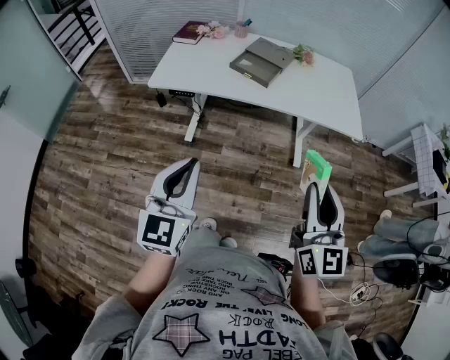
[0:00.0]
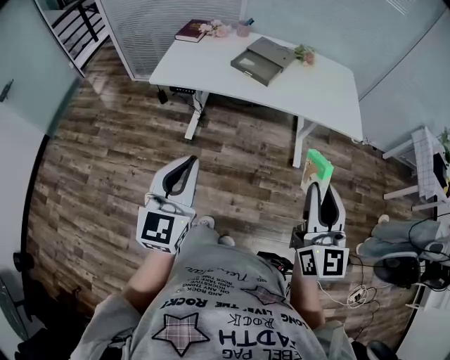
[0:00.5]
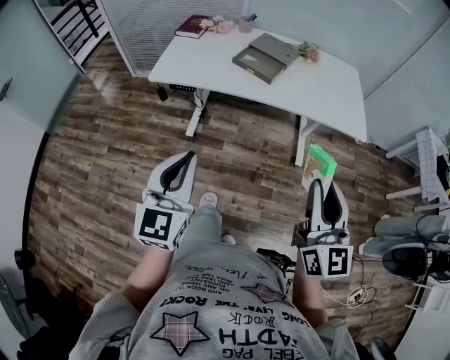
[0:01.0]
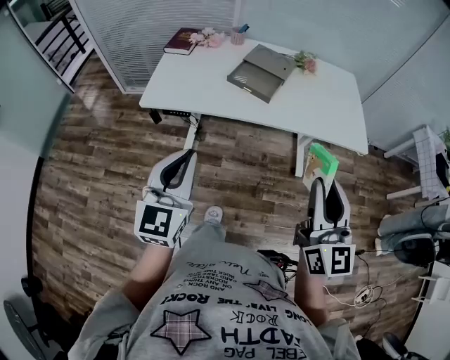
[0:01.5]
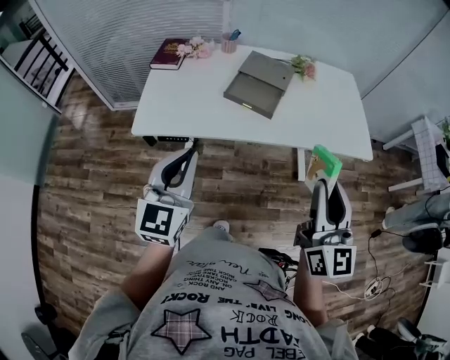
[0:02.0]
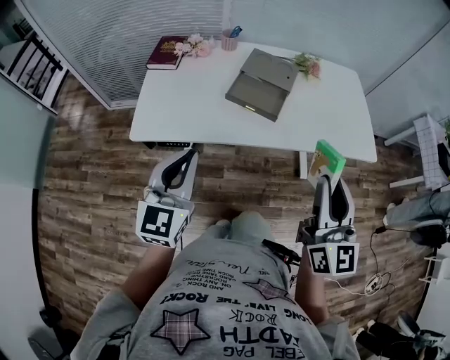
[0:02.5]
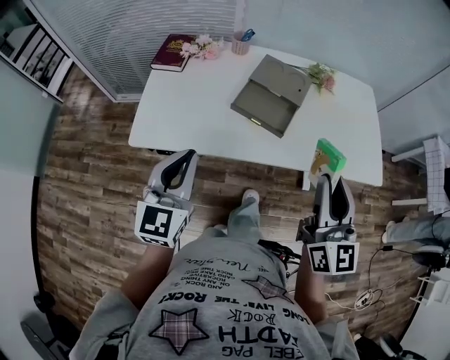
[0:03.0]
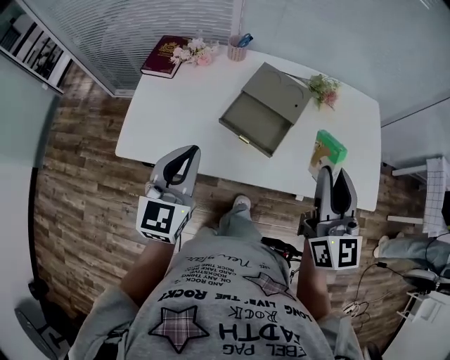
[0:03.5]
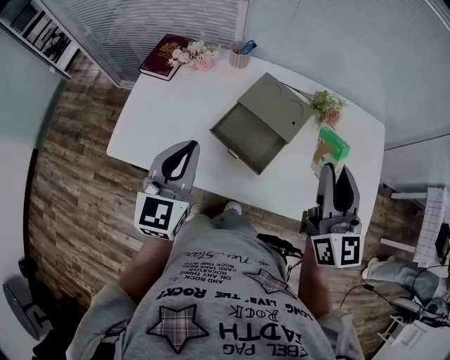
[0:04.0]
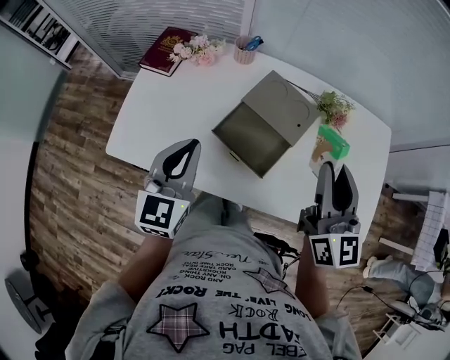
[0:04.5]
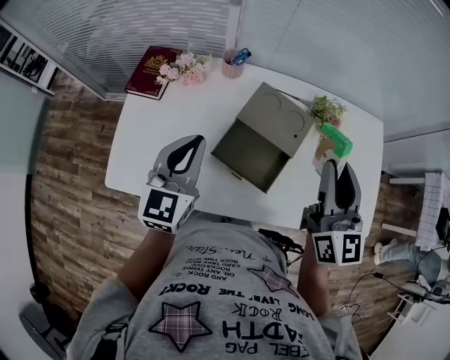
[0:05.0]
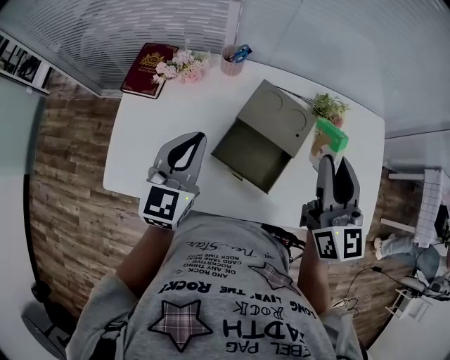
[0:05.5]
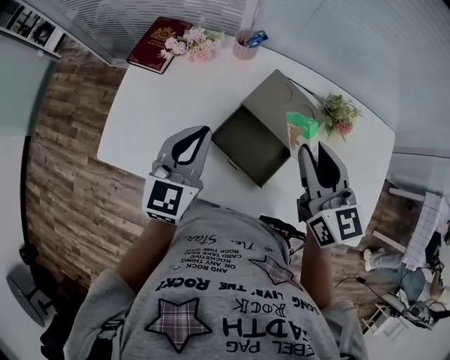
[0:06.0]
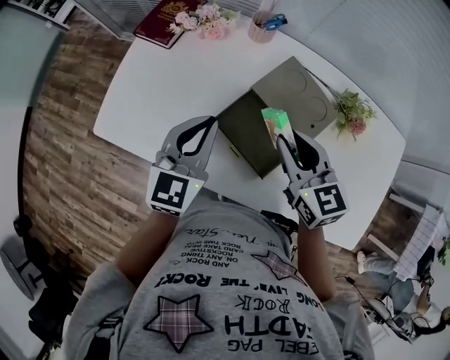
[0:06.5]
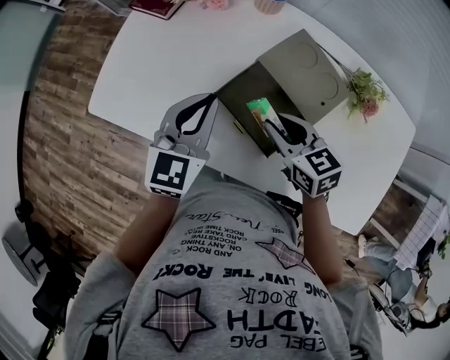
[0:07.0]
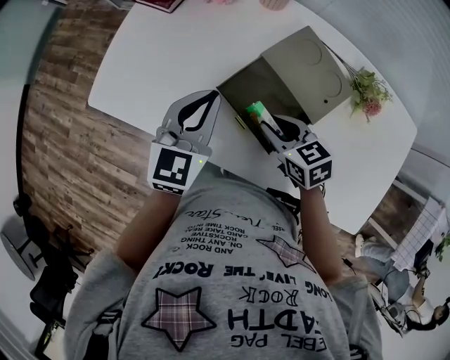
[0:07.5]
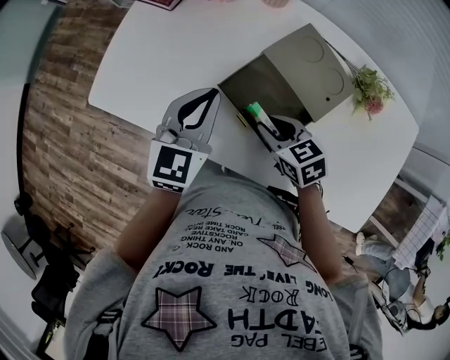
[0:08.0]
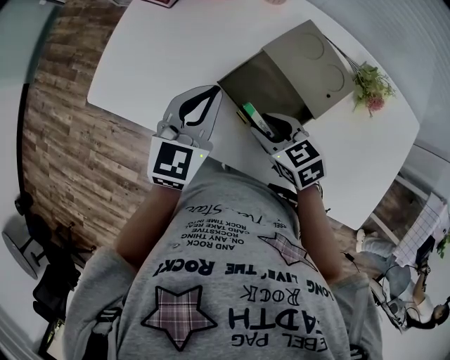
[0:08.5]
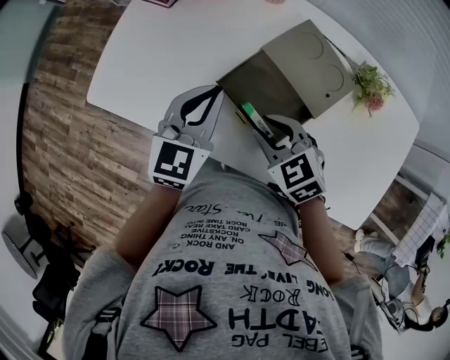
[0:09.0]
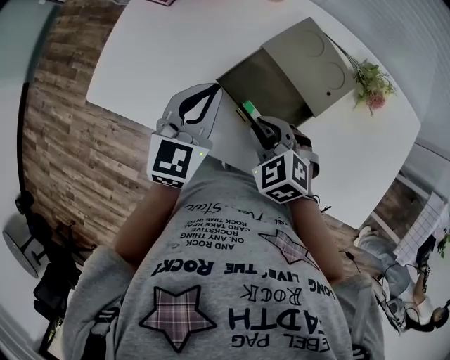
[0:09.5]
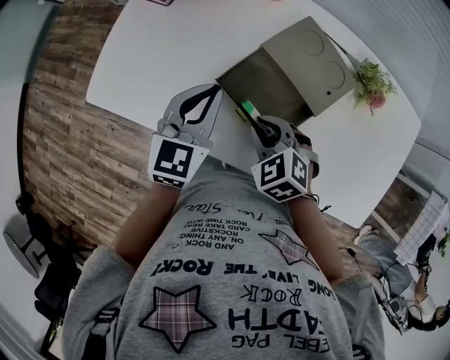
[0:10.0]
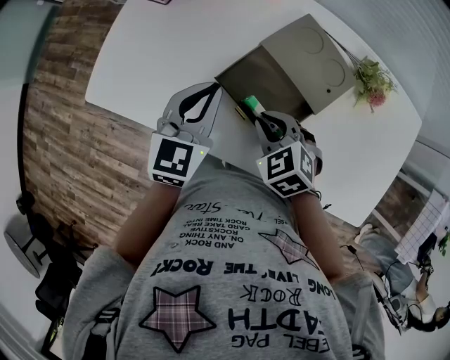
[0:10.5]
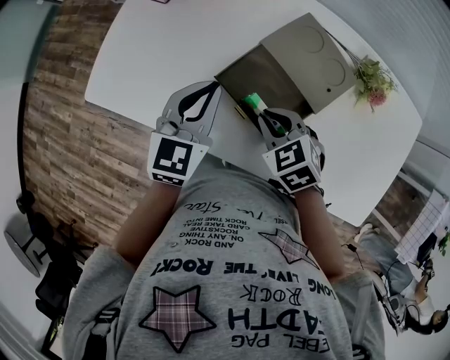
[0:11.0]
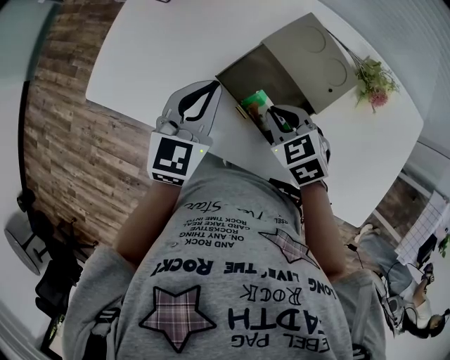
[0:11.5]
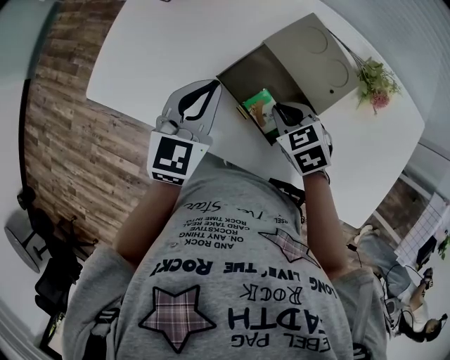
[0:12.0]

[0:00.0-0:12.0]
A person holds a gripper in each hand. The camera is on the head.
0:00.0 to 0:02.0: Both grippers move forward, about 25 cm.
0:02.0 to 0:04.0: The two grippers go about 30 cm forward.
0:04.0 to 0:06.0: The right gripper goes roughly 15 cm forward, to the left and downward, and rotates approximately 20 degrees; the left gripper heads forward and downward, covering roughly 10 cm.
0:06.0 to 0:08.0: The right gripper is displaced downward by roughly 25 cm, and tips its fingers downward by about 30 degrees. Meanwhile the left gripper travels downward by roughly 5 cm.
0:08.0 to 0:10.0: The right gripper rotates about 30 degrees.
0:10.0 to 0:12.0: The right gripper heads to the right, covering some 5 cm.

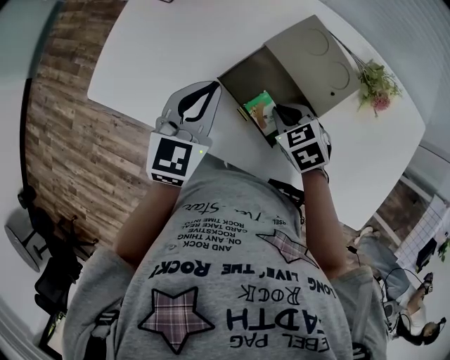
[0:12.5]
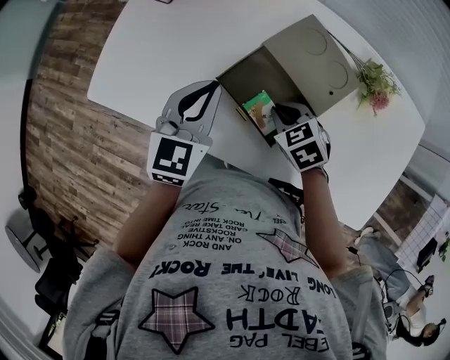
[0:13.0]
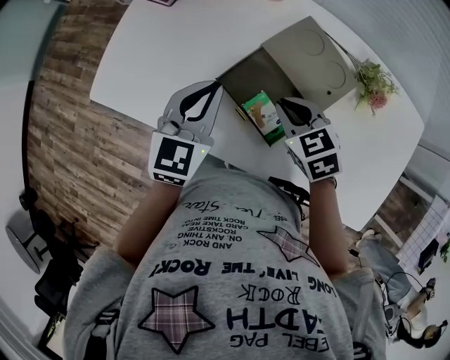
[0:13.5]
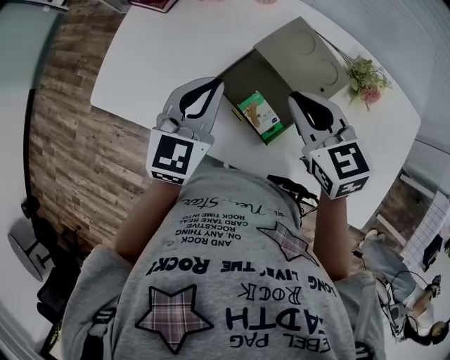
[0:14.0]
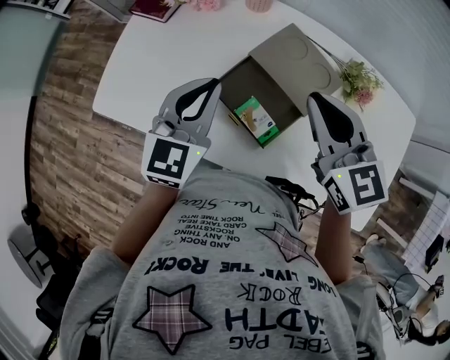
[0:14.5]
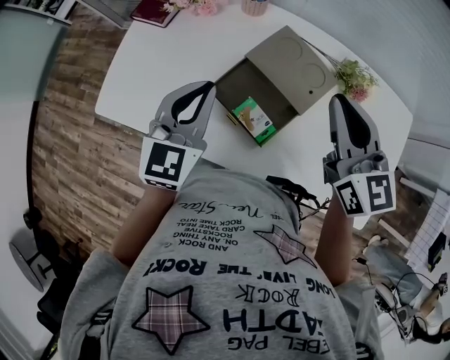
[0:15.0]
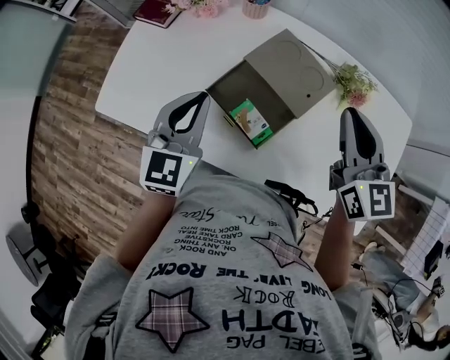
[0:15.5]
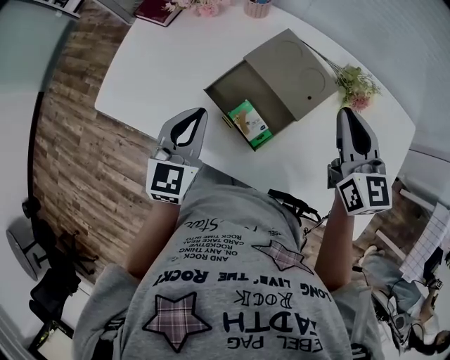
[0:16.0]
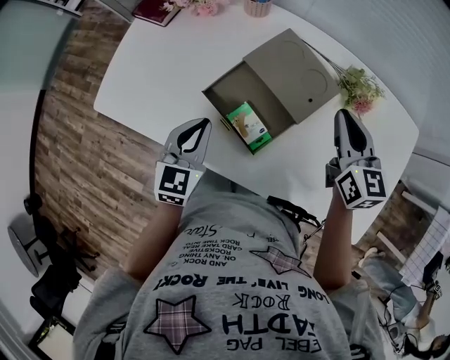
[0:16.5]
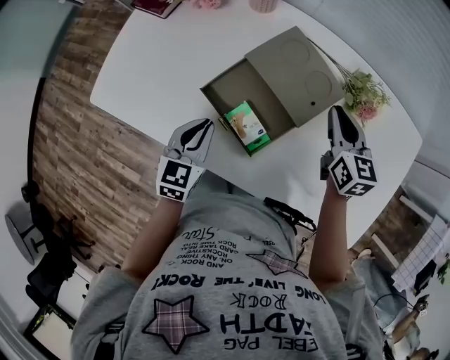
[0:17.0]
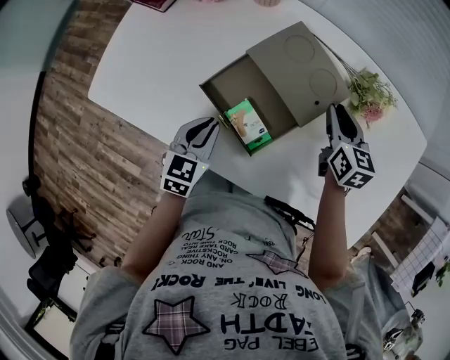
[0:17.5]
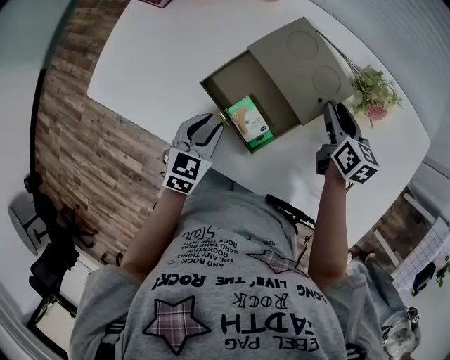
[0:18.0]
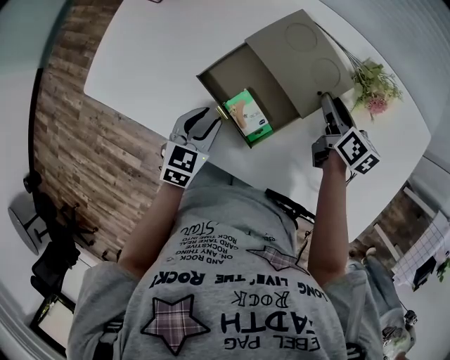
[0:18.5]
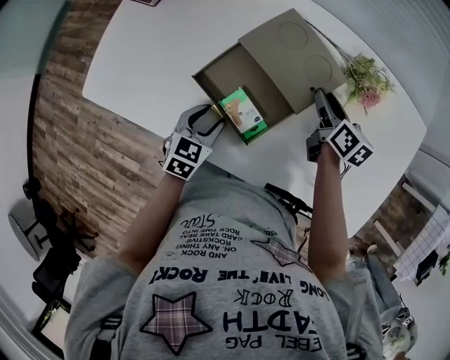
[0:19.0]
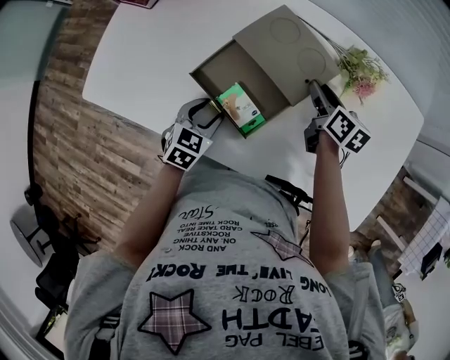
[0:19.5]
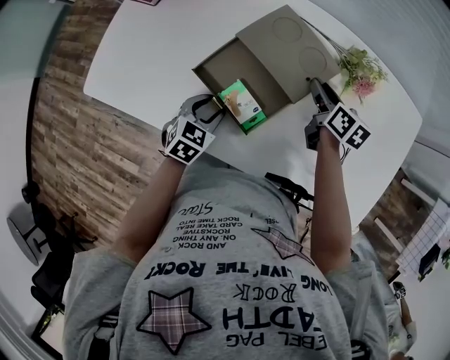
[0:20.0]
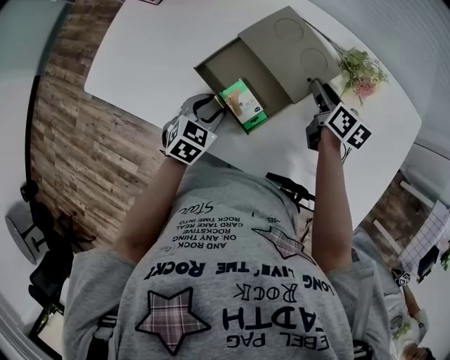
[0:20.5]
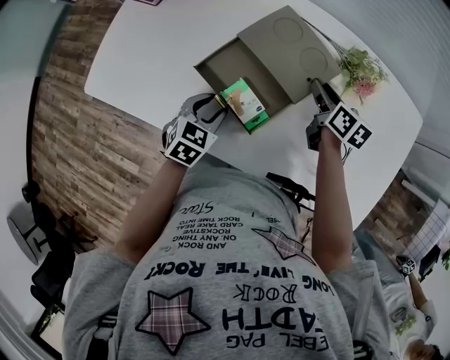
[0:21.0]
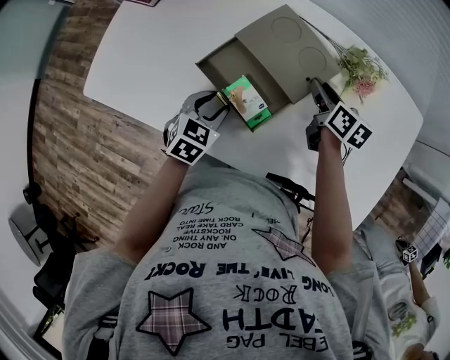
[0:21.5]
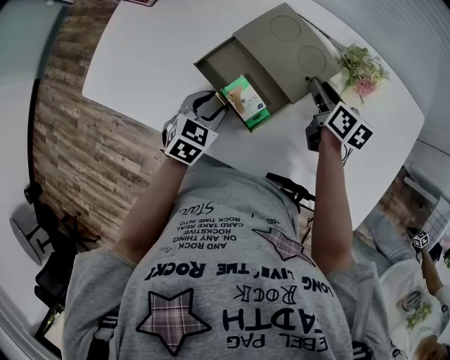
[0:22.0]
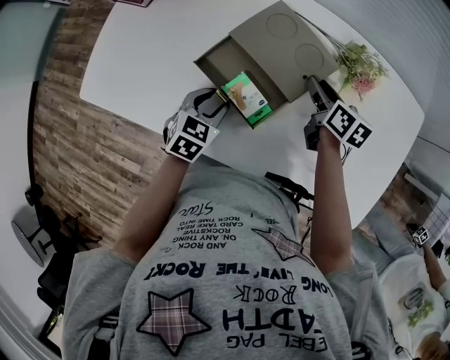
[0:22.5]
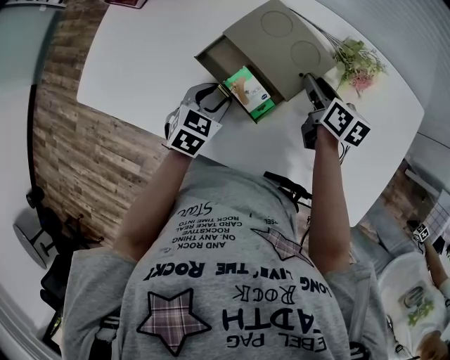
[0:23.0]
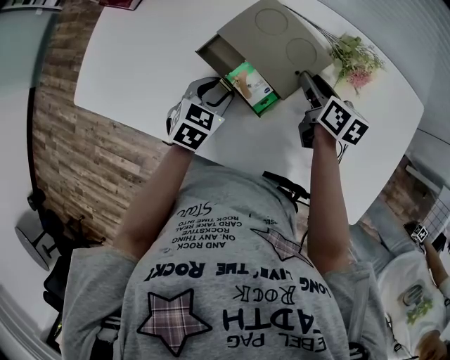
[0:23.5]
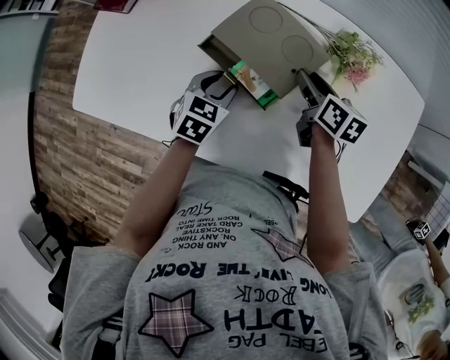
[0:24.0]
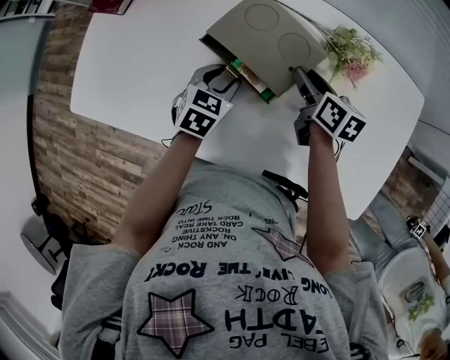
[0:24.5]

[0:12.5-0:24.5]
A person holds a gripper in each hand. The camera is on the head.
0:12.5 to 0:14.5: The left gripper goes approximately 5 cm upward. Meanwhile the right gripper goes approximately 25 cm upward, and angles its fingers upward, by about 40 degrees.
0:14.5 to 0:16.5: The left gripper goes approximately 10 cm downward and backward. Meanwhile the right gripper goes roughly 15 cm to the right and downward.
0:16.5 to 0:18.5: Both grippers travel together downward, some 15 cm. The left gripper opens its fingers. The right gripper swivels roughly 30 degrees, and opens.
0:18.5 to 0:22.5: There are only small adjustments of the grippers.
0:22.5 to 0:24.5: The left gripper travels forward and to the right by roughly 10 cm.

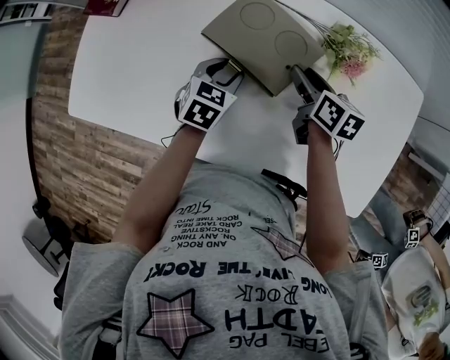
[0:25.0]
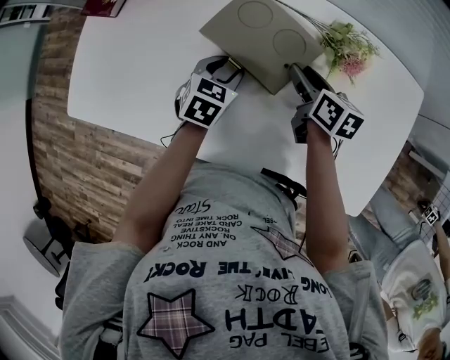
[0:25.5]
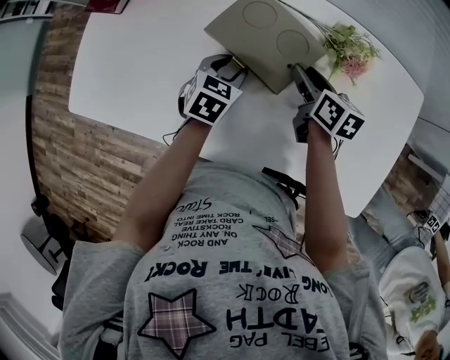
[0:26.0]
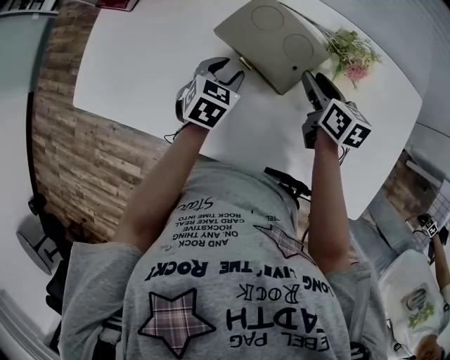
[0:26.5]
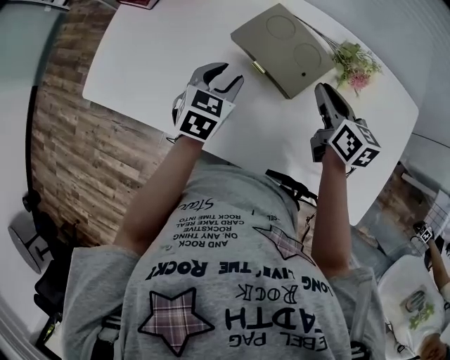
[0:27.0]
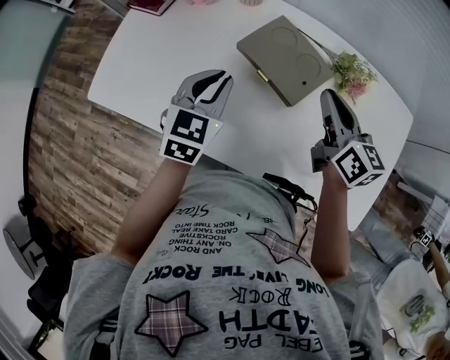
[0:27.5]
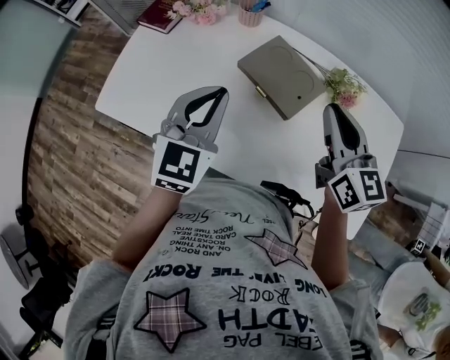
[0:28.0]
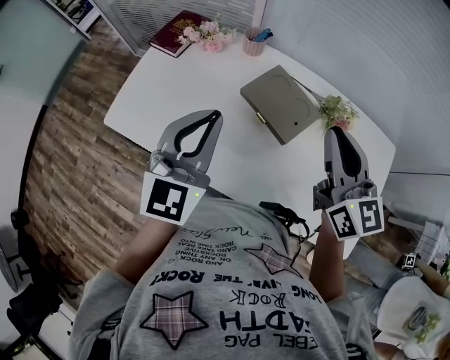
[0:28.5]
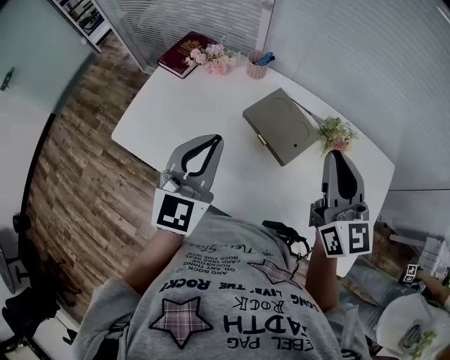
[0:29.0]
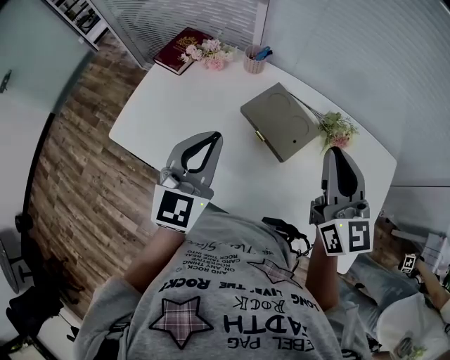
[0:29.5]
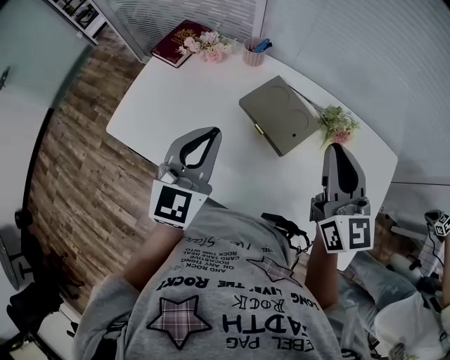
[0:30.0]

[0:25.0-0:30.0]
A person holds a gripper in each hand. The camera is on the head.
0:25.0 to 0:27.5: The right gripper shifts some 15 cm upward, swivels approximately 30 degrees, and closes; the left gripper shifts approximately 20 cm upward and to the left, swivels about 20 degrees, and closes.
0:27.5 to 0:30.0: The two grippers go approximately 15 cm upward. The right gripper swivels some 30 degrees.
